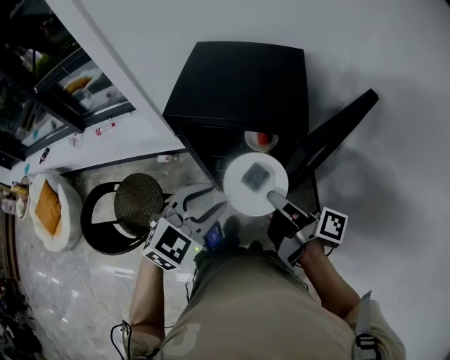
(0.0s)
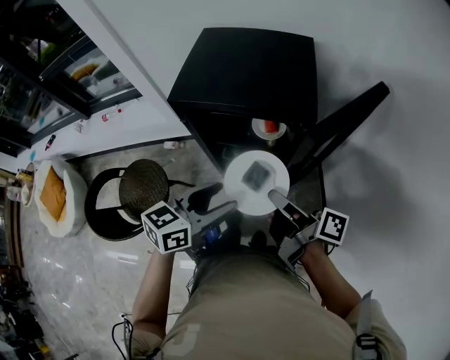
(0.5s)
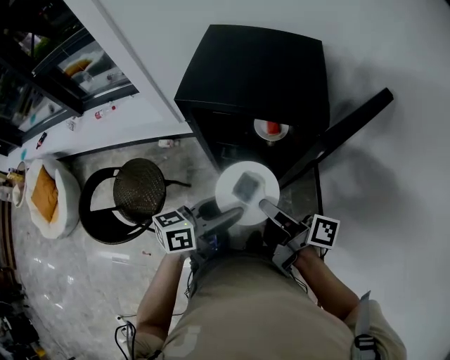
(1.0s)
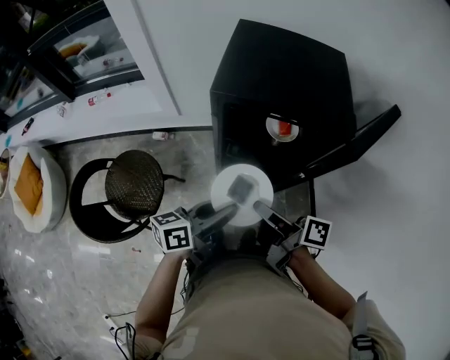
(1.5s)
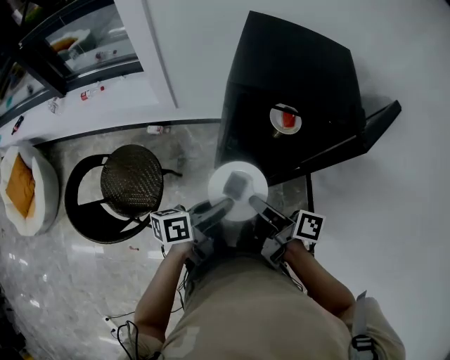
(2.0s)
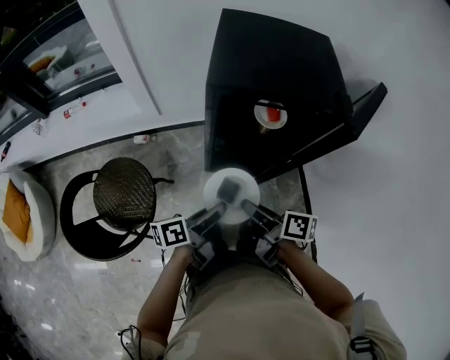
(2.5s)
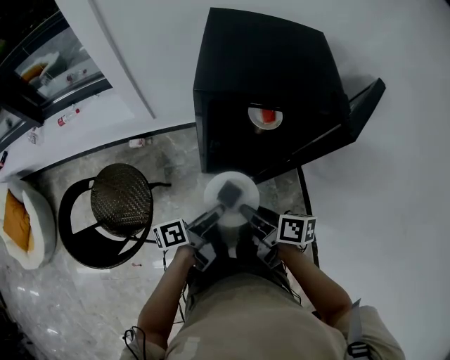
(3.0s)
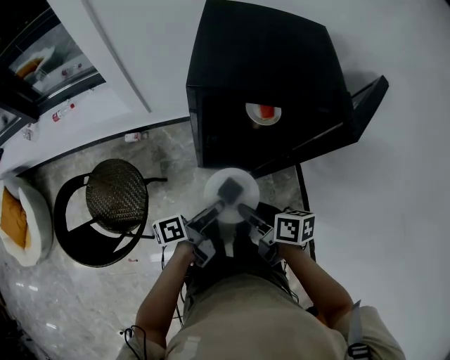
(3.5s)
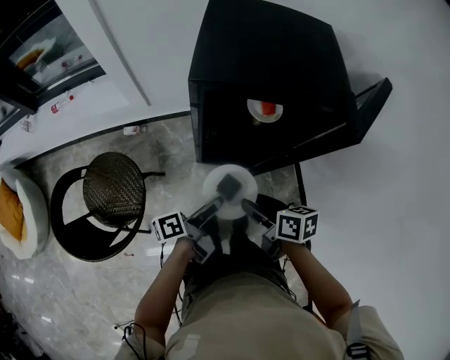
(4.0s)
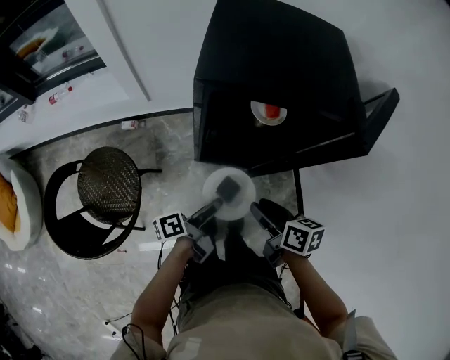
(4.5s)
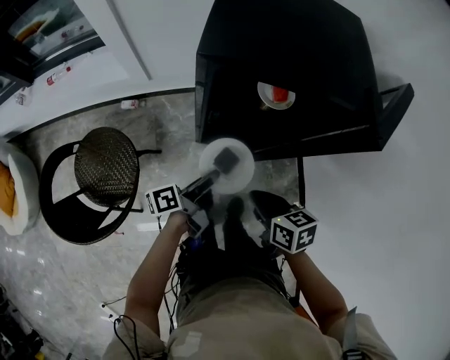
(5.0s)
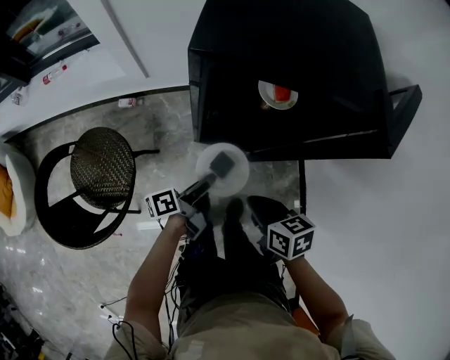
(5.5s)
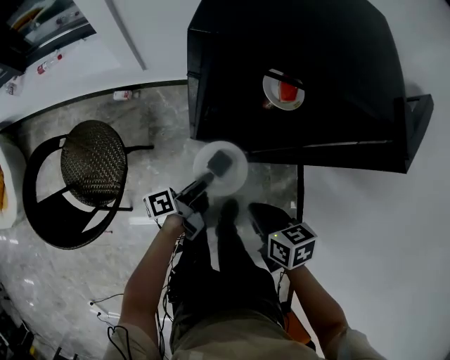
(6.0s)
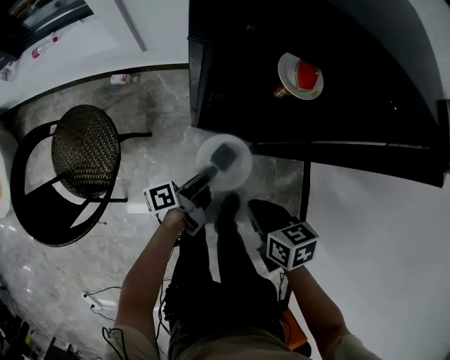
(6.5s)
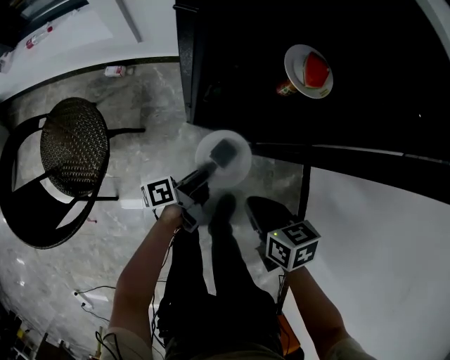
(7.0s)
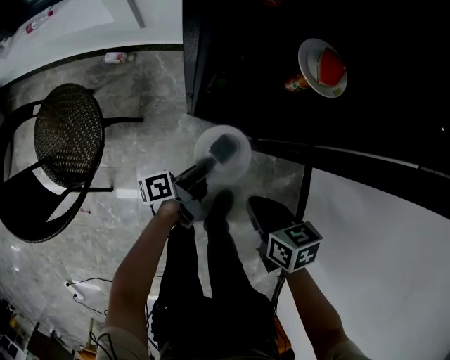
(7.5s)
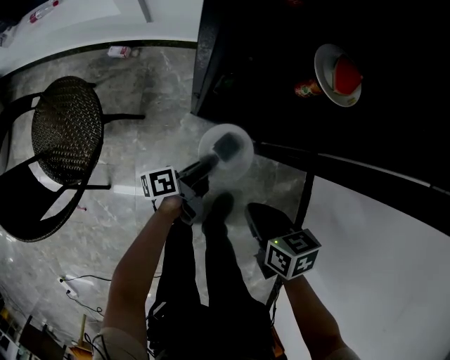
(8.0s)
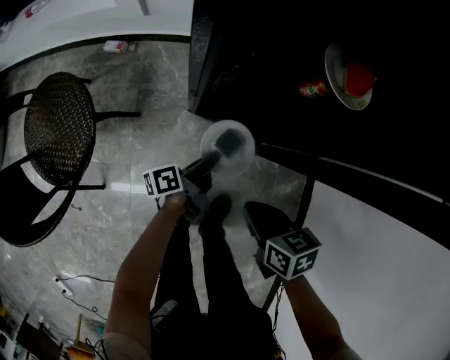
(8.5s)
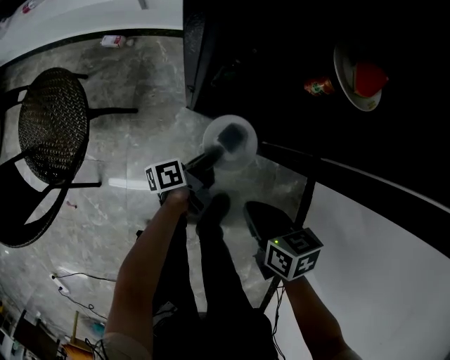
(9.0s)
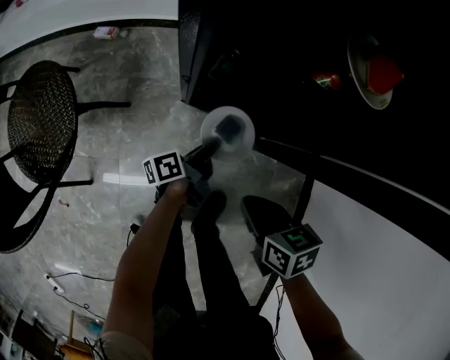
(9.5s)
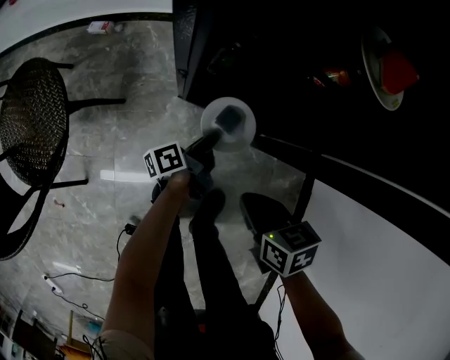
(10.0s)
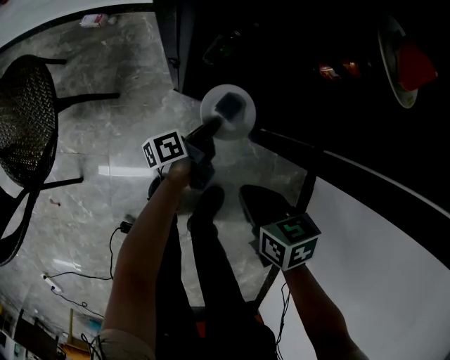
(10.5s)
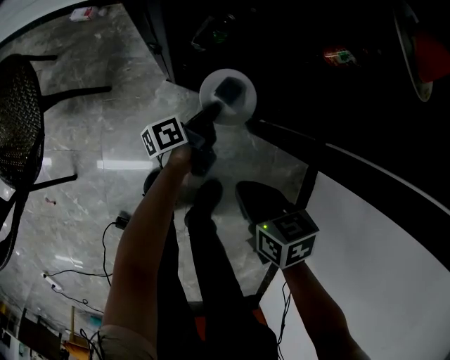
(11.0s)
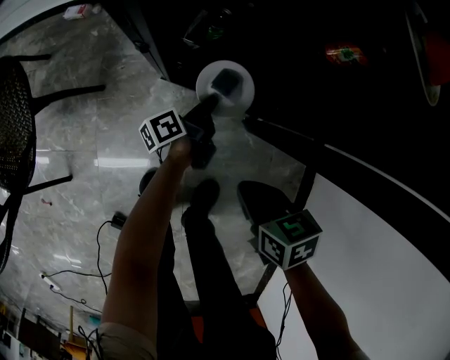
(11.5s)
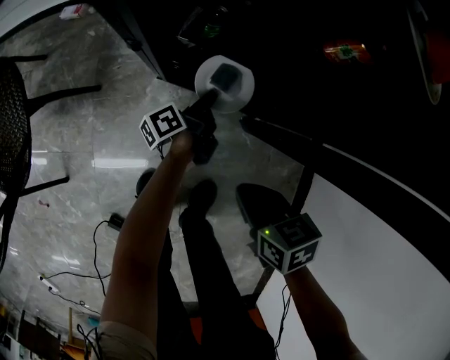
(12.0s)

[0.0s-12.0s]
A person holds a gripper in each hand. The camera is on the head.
0.0s to 2.0s: The right gripper travels to the left and downward by some 20 cm, while the left gripper moves downward and to the left, roughly 20 cm, rolls counterclockwise, seen from behind, by about 80 degrees, and opens, then closes once more.
2.0s to 4.0s: Both grippers move downward, some 10 cm. The left gripper turns by some 30 degrees. Meanwhile the right gripper swivels some 30 degrees, and opens.
4.0s to 6.0s: The right gripper travels downward by roughly 10 cm, turns by approximately 20 degrees, and closes up. Meanwhile the left gripper travels downward by about 15 cm.
6.0s to 8.0s: The two grippers go approximately 15 cm downward.
8.0s to 10.0s: Both grippers travel together downward, approximately 10 cm.
10.0s to 12.0s: The right gripper goes some 5 cm downward, while the left gripper is displaced downward and forward by some 10 cm.

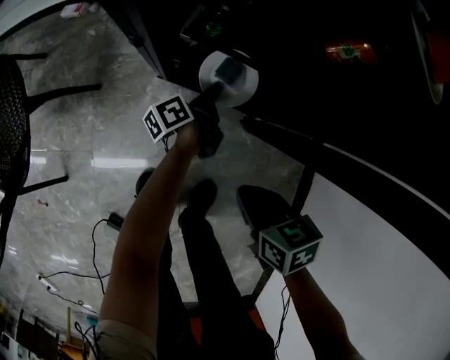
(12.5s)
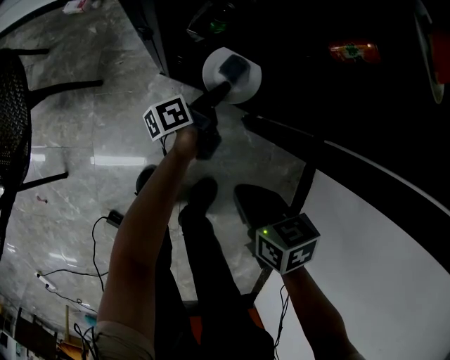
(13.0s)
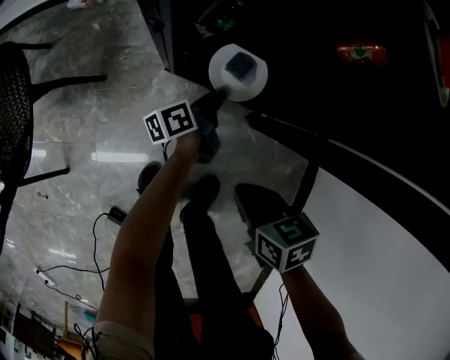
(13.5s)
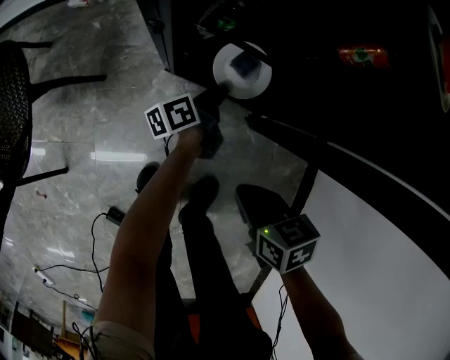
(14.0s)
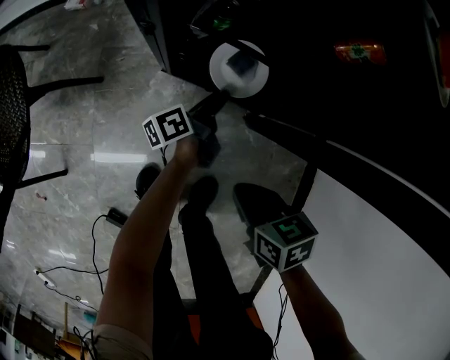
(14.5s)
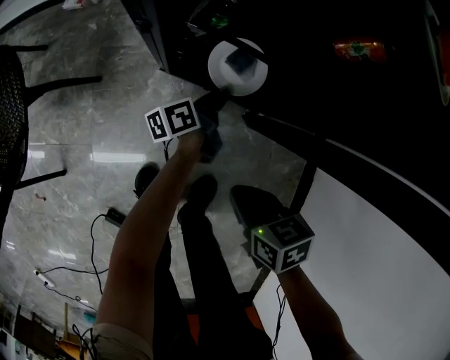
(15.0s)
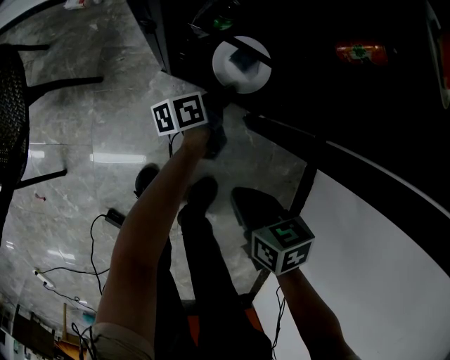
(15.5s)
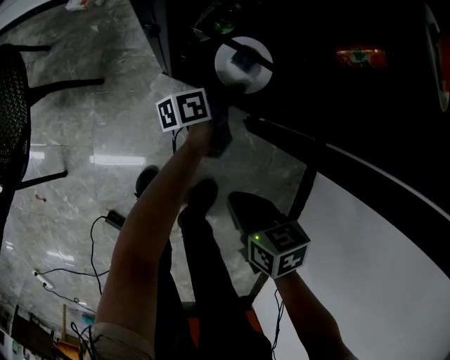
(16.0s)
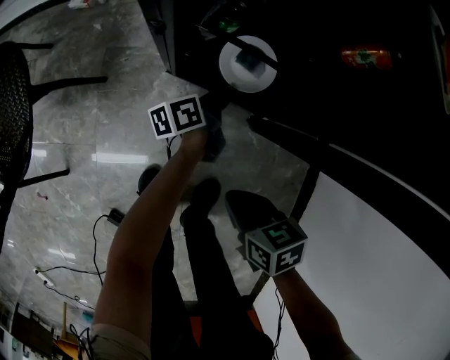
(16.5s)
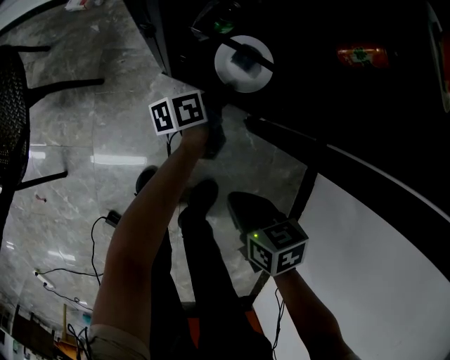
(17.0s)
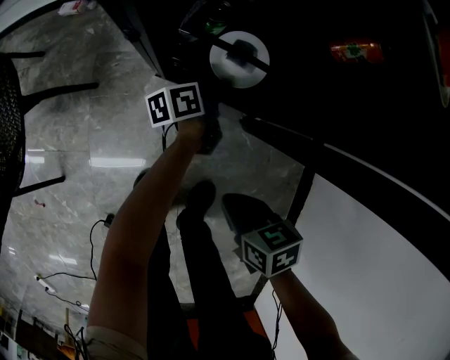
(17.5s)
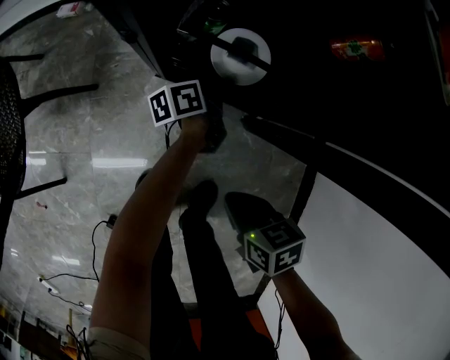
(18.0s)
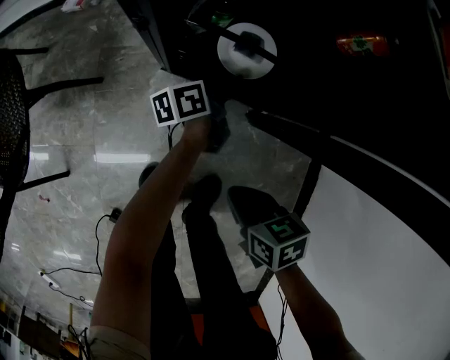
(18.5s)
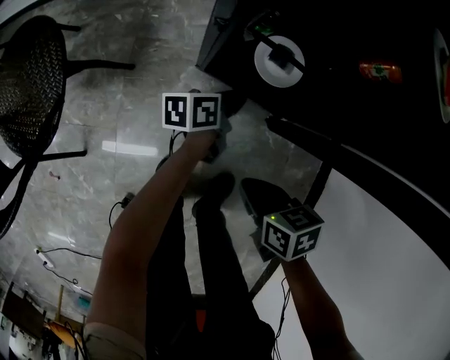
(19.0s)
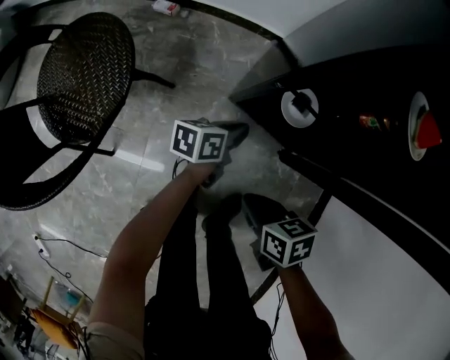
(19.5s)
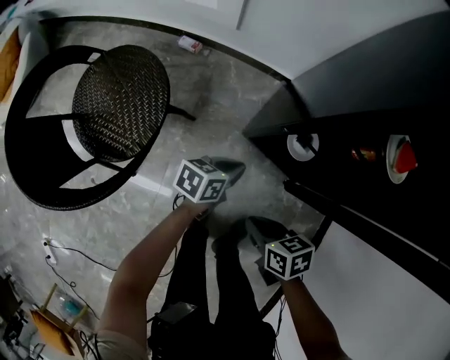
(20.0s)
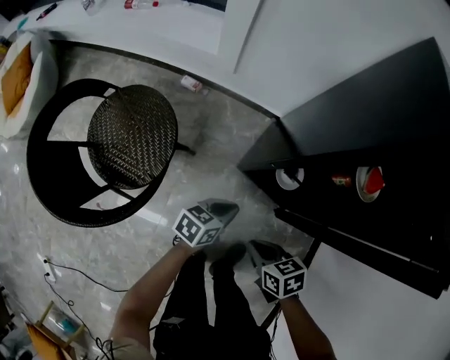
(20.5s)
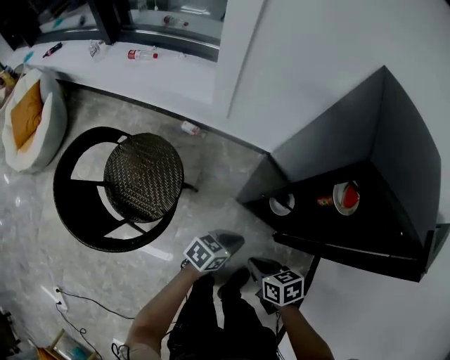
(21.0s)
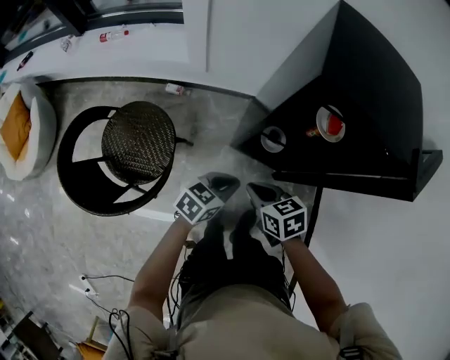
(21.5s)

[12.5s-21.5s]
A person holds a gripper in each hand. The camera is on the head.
12.5s to 14.5s: The left gripper opens.
14.5s to 17.0s: The left gripper closes up.
17.0s to 19.5s: Both grippers move to the left and upward, about 15 cm. The left gripper changes its angle by roughly 20 degrees, and opens and closes again.
19.5s to 21.5s: Both grippers move upward, some 30 cm. The left gripper swivels approximately 40 degrees.

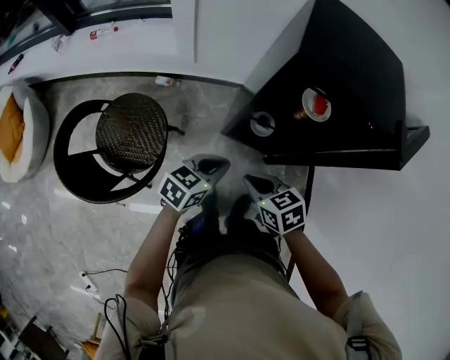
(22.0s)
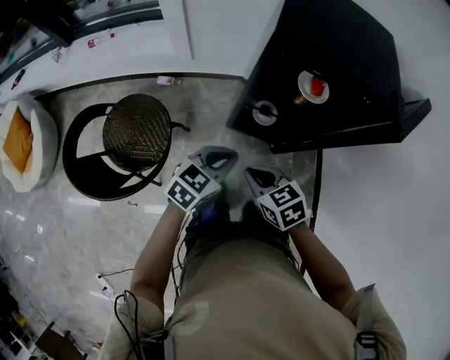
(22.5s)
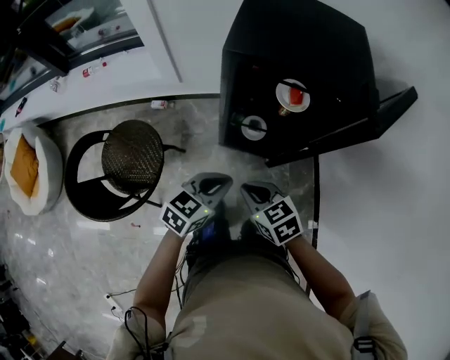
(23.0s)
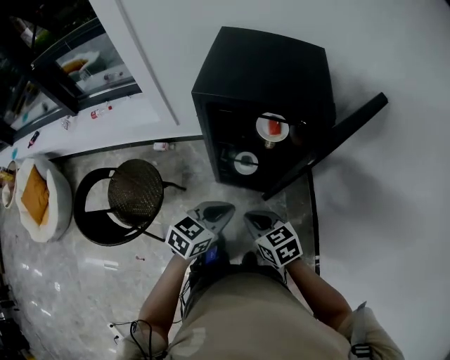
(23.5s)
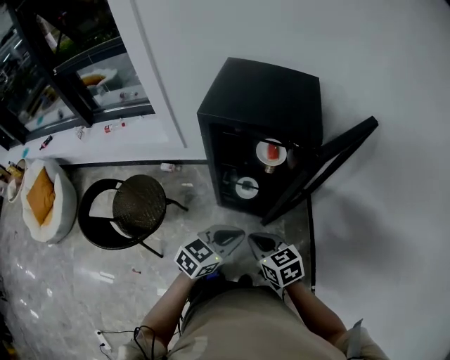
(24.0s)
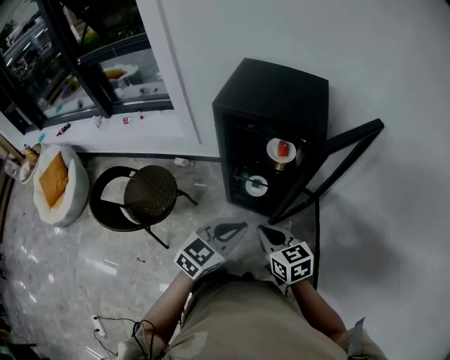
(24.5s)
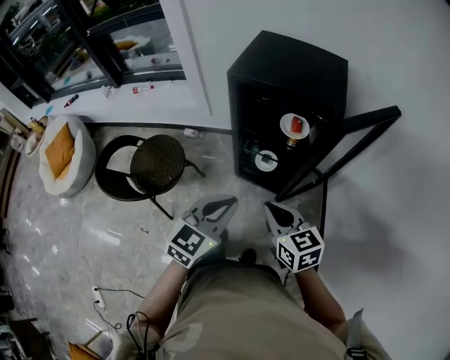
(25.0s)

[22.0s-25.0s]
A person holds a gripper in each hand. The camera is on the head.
22.0s to 23.5s: The grippers both shift to the right and upward by some 15 cm.
23.5s to 25.0s: The grippers both shift upward and backward by roughly 10 cm. The left gripper swivels some 30 degrees.

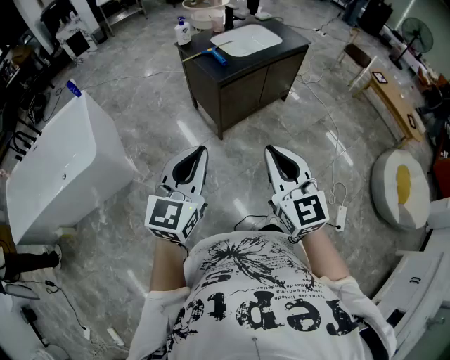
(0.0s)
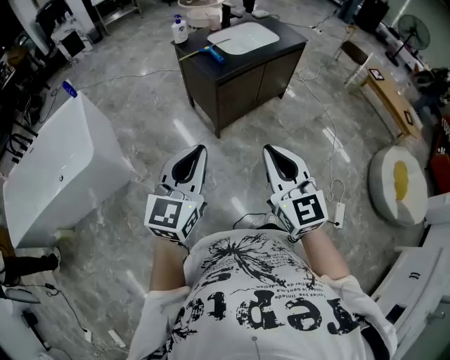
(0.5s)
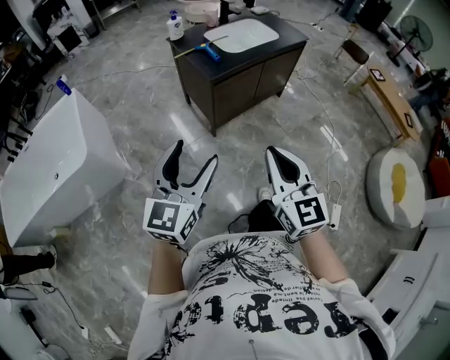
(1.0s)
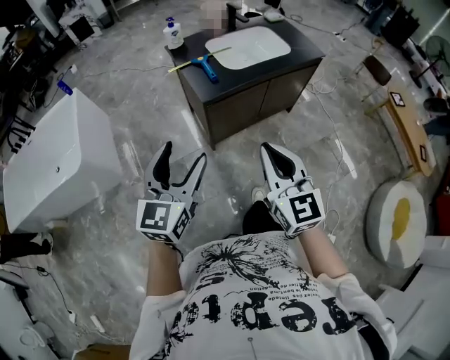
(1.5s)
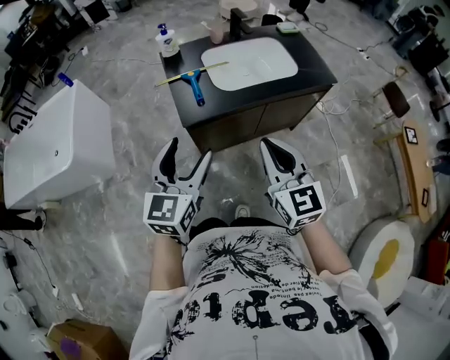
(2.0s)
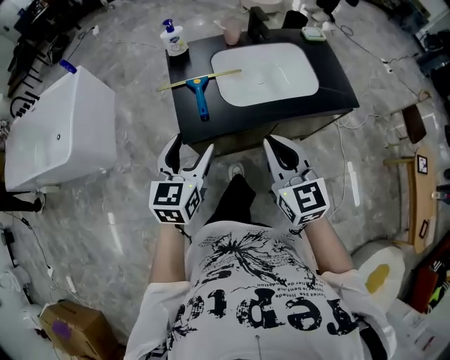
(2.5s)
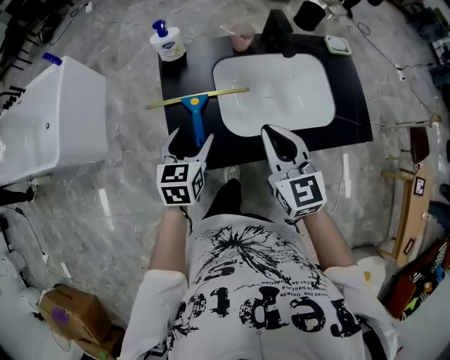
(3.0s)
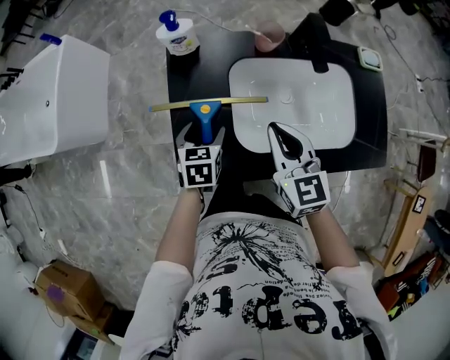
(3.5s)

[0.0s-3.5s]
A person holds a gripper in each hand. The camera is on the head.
0.0s to 2.0s: The pair of grippers is taken forward and to the right, roughly 50 cm. The left gripper rotates some 20 degrees, and opens up.
2.0s to 3.5s: The two grippers travel together, forward, roughly 50 cm. The right gripper swivels roughly 20 degrees, while the left gripper travels downward by approximately 30 cm, and tilts its fingers roughly 40 degrees downward.
